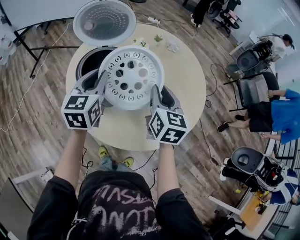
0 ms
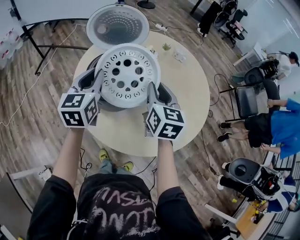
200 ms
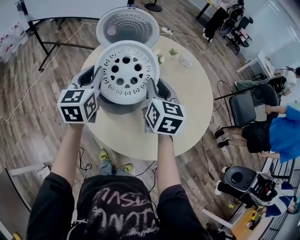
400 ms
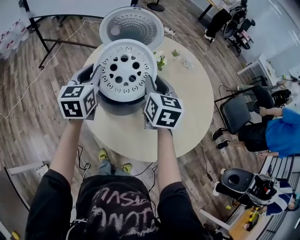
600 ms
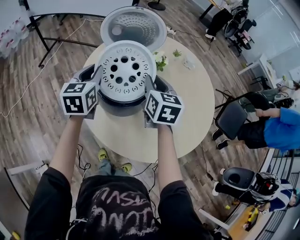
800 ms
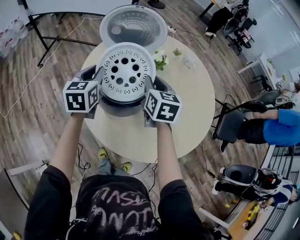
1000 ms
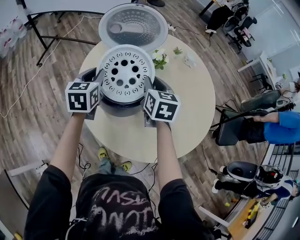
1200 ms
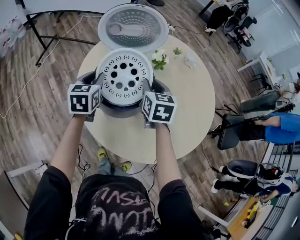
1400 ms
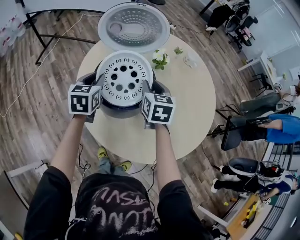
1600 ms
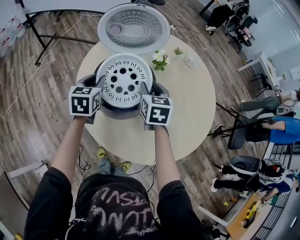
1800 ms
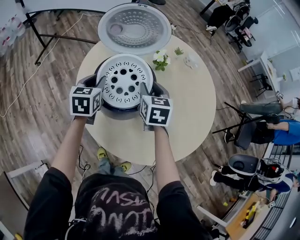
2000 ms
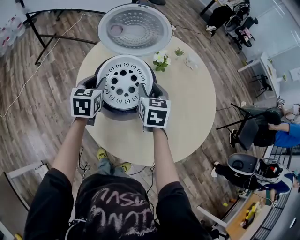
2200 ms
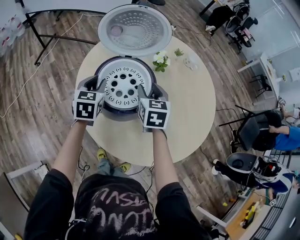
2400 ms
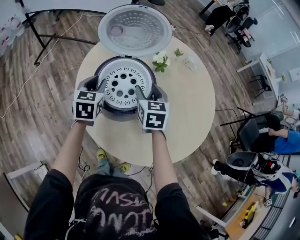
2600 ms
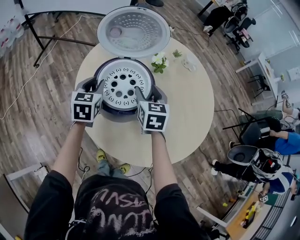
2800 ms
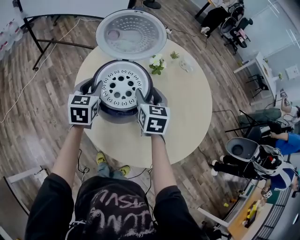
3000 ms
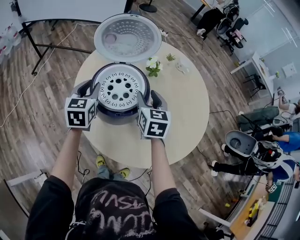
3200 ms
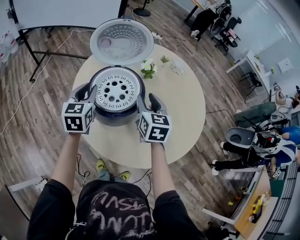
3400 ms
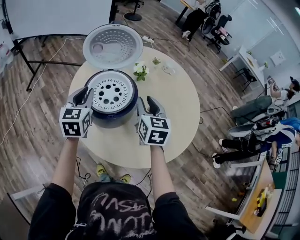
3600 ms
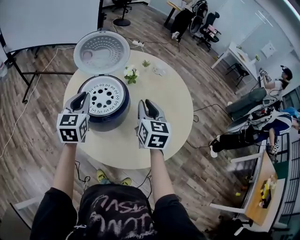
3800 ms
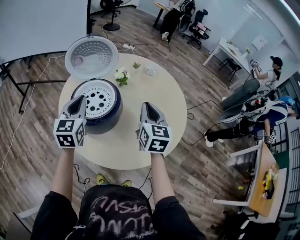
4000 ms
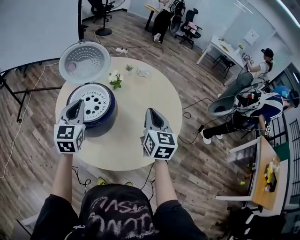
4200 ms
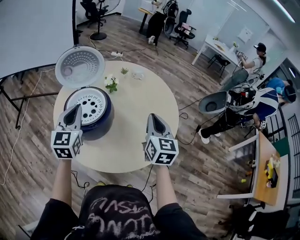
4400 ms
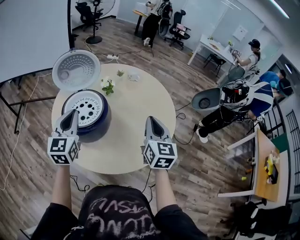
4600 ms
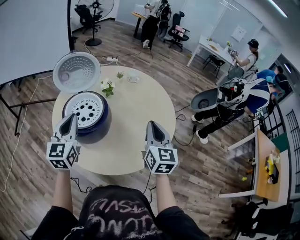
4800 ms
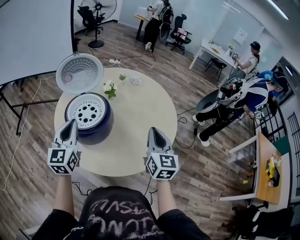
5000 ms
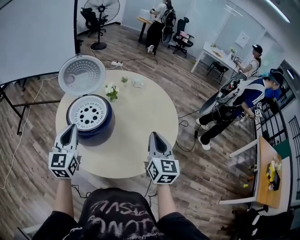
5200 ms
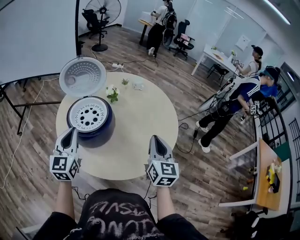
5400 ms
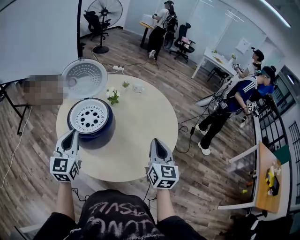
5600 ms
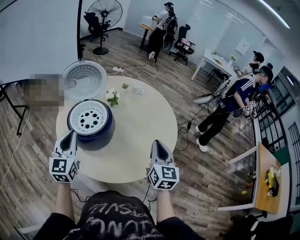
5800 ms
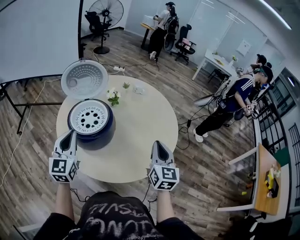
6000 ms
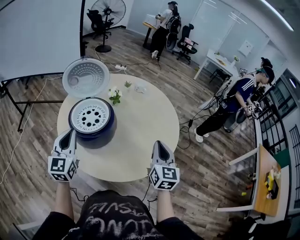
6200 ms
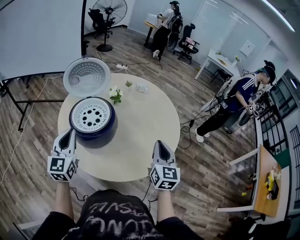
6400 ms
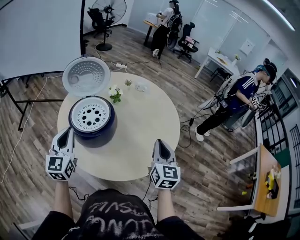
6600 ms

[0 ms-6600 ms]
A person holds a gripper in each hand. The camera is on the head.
0 ms to 1600 ms: The left gripper goes about 20 cm to the left, downward and forward. Meanwhile the right gripper heads to the left, forward and downward, covering roughly 20 cm.
1600 ms to 3200 ms: The grippers make only small movements.
3200 ms to 5000 ms: The right gripper shifts approximately 30 cm to the right, backward and upward, changes its angle by about 30 degrees, and closes up, while the left gripper travels upward, backward and to the right by approximately 20 cm, changes its angle by roughly 30 degrees, and closes.
5000 ms to 6600 ms: The grippers move only a little.

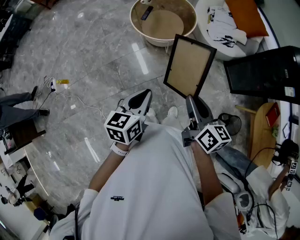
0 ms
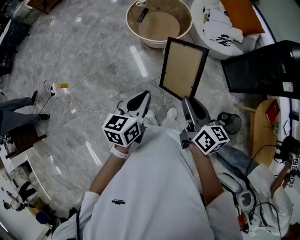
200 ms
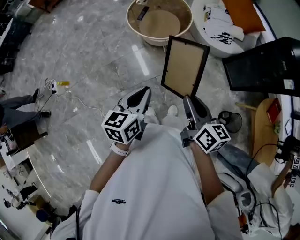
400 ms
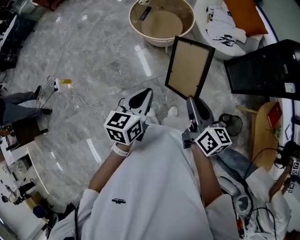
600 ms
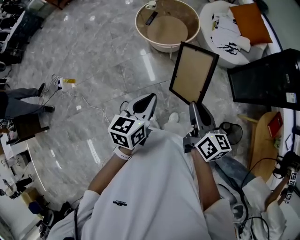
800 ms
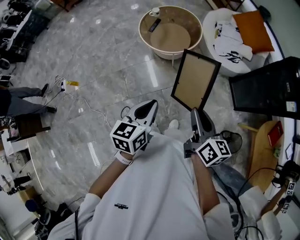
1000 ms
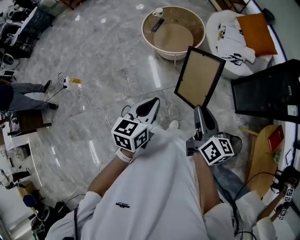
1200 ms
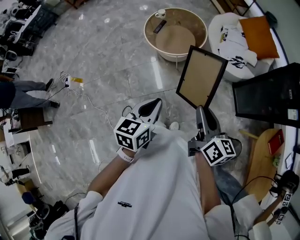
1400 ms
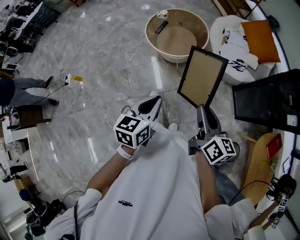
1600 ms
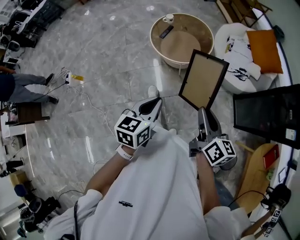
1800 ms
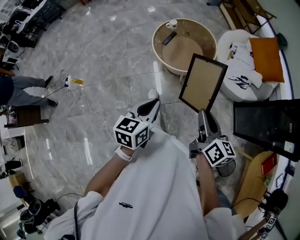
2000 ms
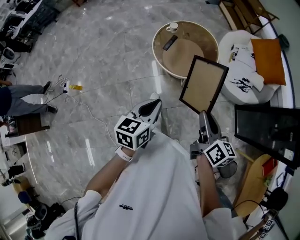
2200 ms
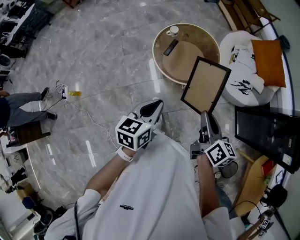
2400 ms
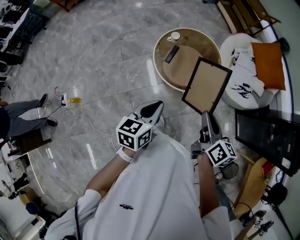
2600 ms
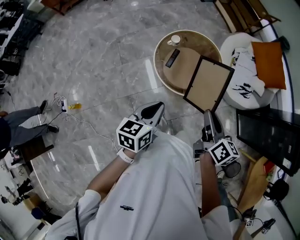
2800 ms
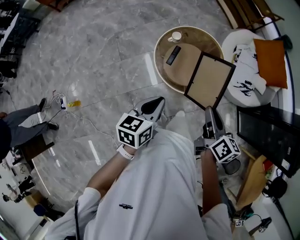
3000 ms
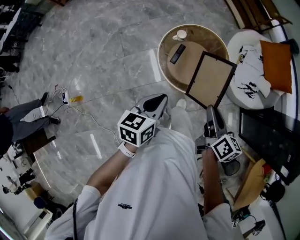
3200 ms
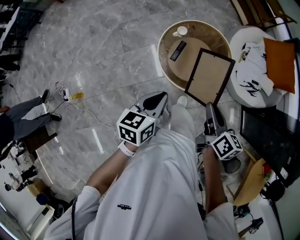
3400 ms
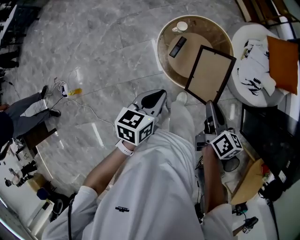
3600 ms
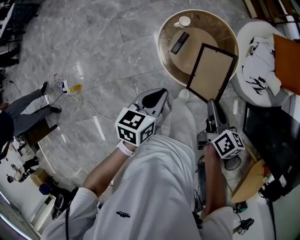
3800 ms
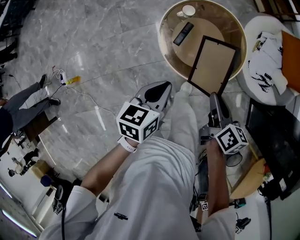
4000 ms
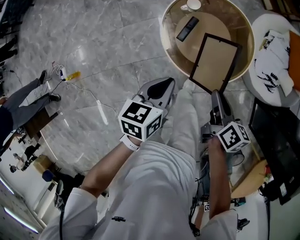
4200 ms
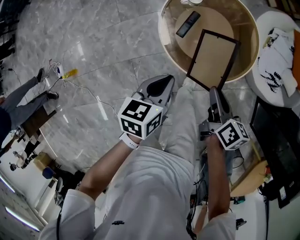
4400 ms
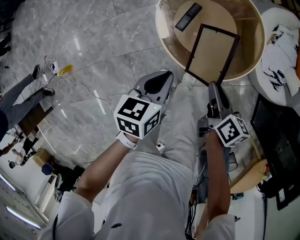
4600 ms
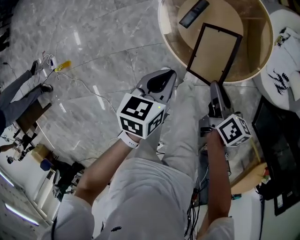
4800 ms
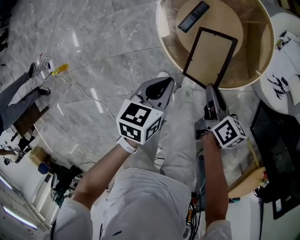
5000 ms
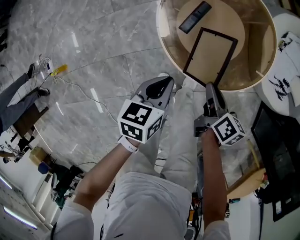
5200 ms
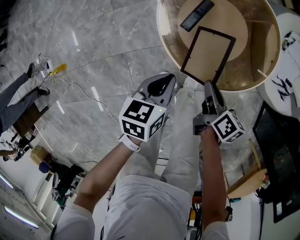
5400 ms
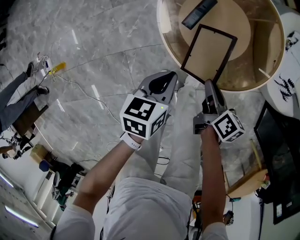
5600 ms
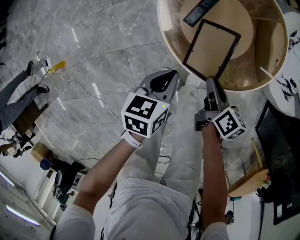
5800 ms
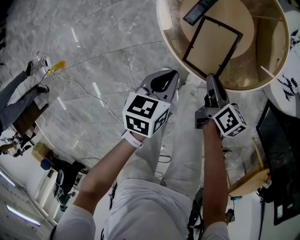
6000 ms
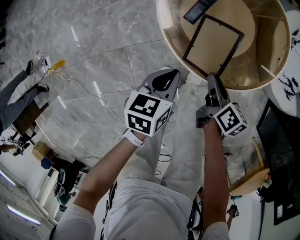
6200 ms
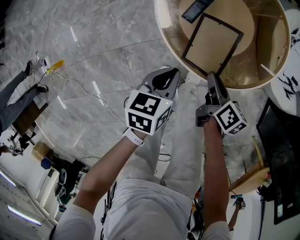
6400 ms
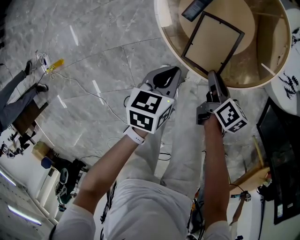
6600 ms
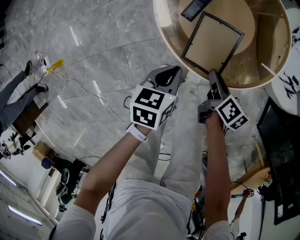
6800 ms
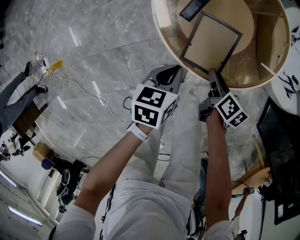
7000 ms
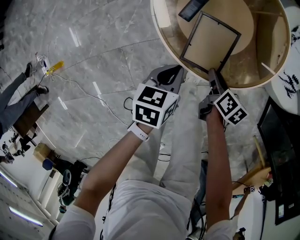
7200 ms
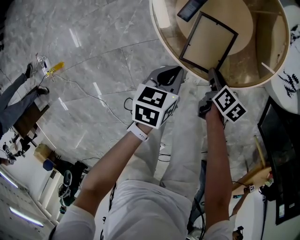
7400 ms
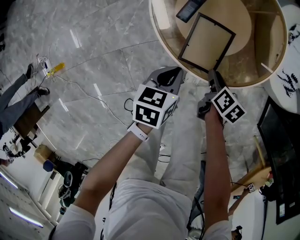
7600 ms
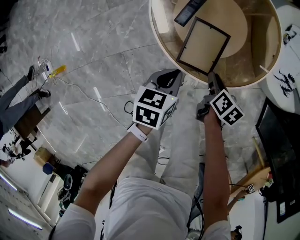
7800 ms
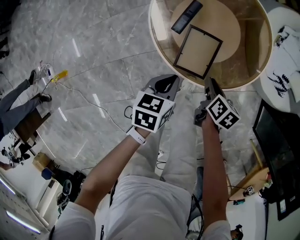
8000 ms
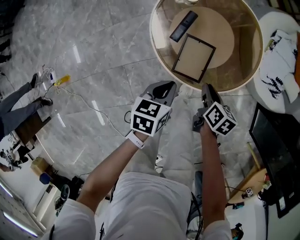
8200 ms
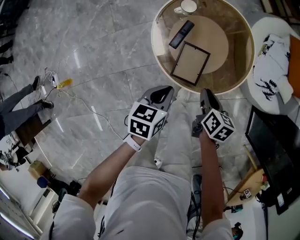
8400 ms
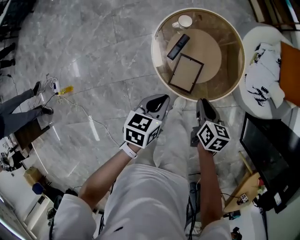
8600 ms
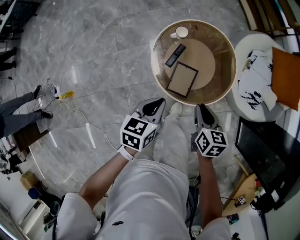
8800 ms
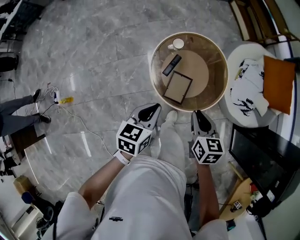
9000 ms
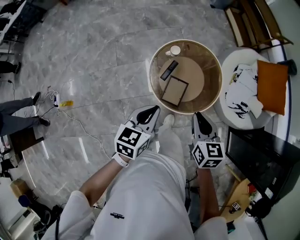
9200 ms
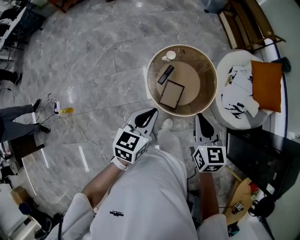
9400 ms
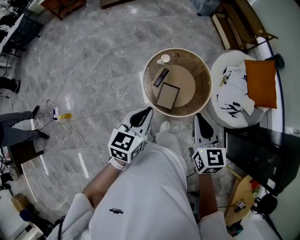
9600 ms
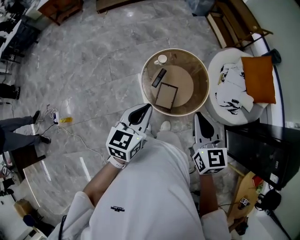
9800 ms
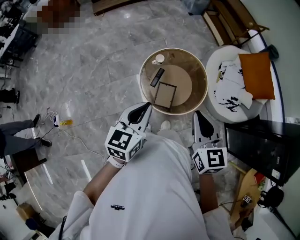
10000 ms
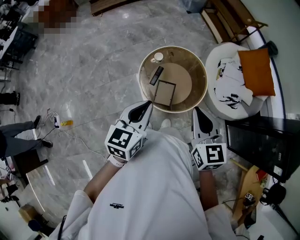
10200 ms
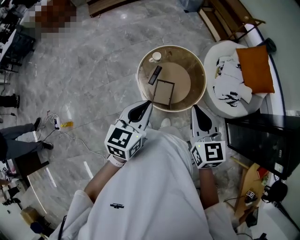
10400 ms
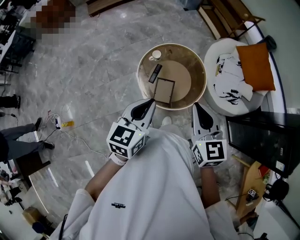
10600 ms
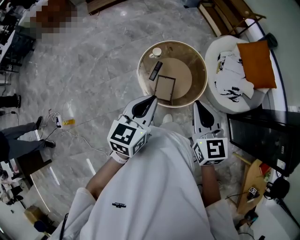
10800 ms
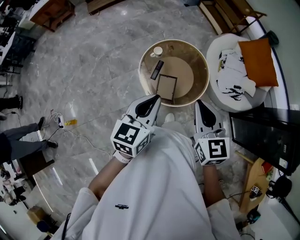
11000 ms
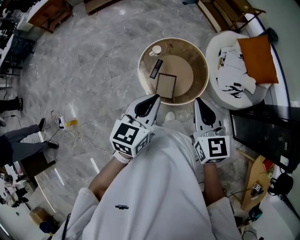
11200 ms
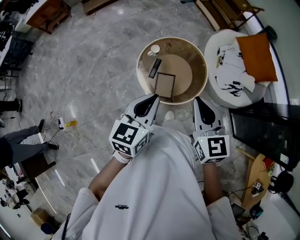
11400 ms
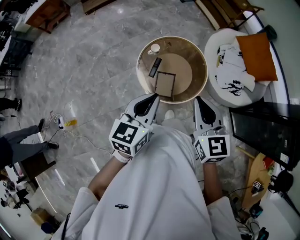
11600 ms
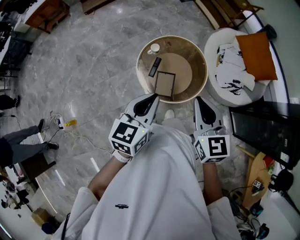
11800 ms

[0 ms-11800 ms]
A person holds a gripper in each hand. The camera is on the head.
0 ms to 1400 ms: Both grippers move to the right, about 10 cm.
1400 ms to 3000 ms: The two grippers travel together, forward and to the left, roughly 50 cm.
3000 ms to 4400 ms: Both grippers travel together downward and forward, approximately 25 cm.
4400 ms to 6000 ms: Both grippers move downward, roughly 25 cm.
6000 ms to 7400 ms: The right gripper moves downward, some 5 cm.
7400 ms to 8800 ms: Both grippers travel together upward, some 35 cm. The right gripper swivels roughly 30 degrees.
8800 ms to 10400 ms: Both grippers move upward, roughly 25 cm. The left gripper swivels approximately 20 degrees. The right gripper rotates about 30 degrees.
10400 ms to 11800 ms: The grippers make only small movements.

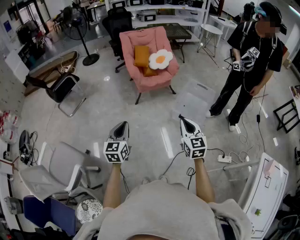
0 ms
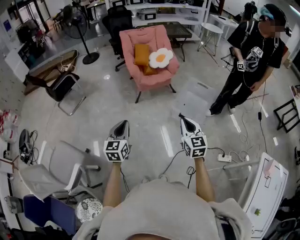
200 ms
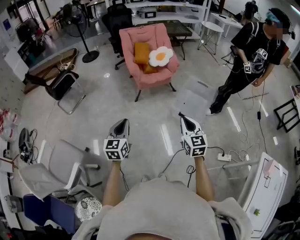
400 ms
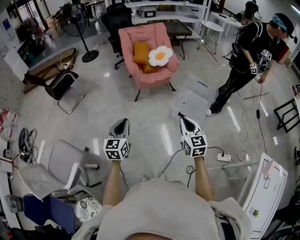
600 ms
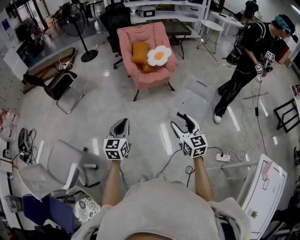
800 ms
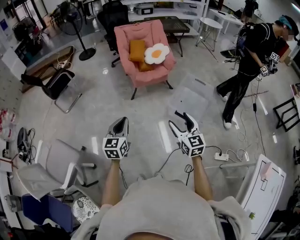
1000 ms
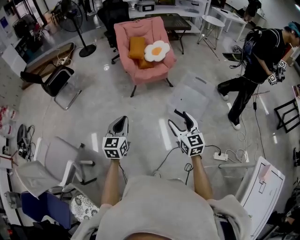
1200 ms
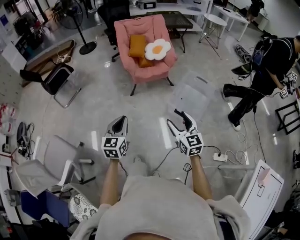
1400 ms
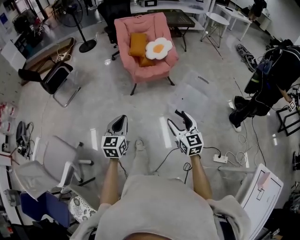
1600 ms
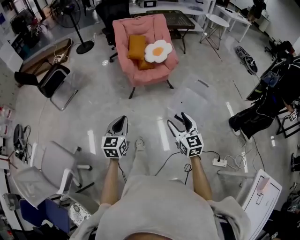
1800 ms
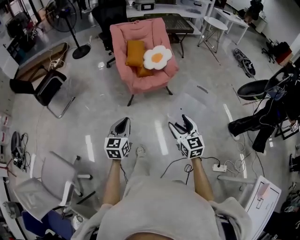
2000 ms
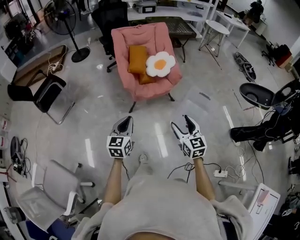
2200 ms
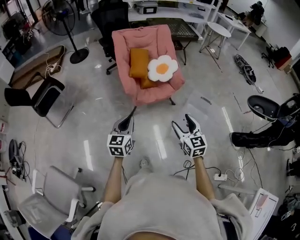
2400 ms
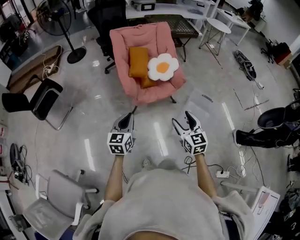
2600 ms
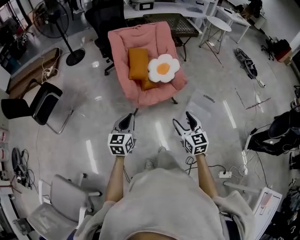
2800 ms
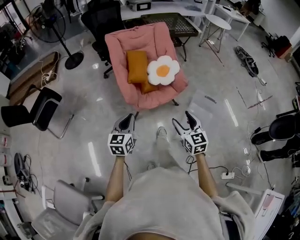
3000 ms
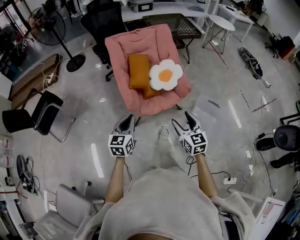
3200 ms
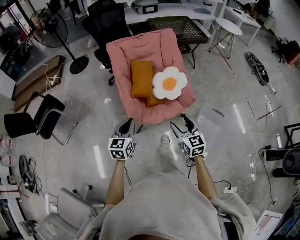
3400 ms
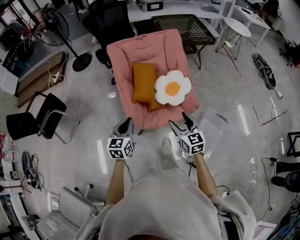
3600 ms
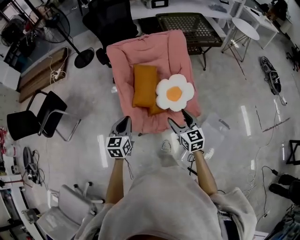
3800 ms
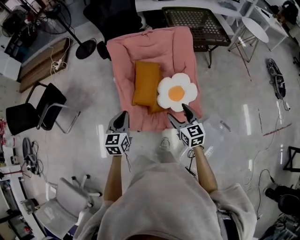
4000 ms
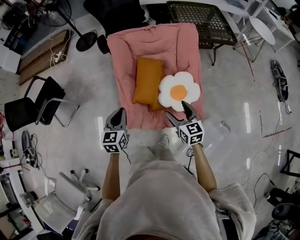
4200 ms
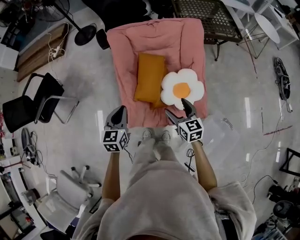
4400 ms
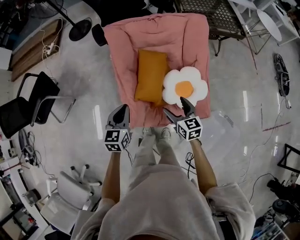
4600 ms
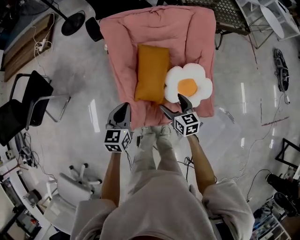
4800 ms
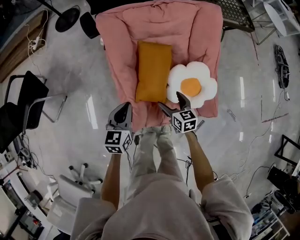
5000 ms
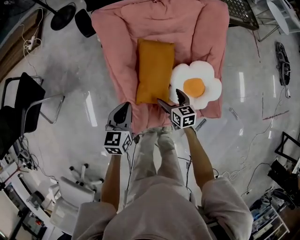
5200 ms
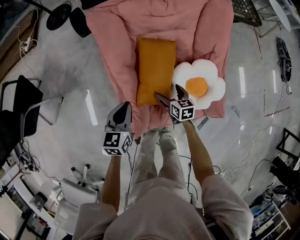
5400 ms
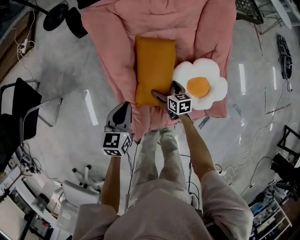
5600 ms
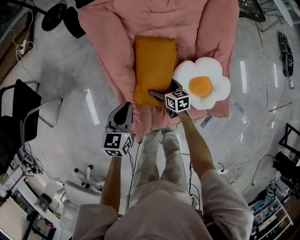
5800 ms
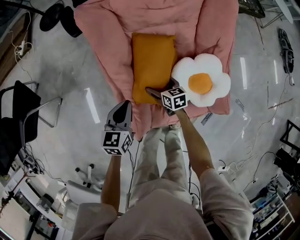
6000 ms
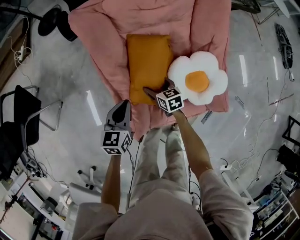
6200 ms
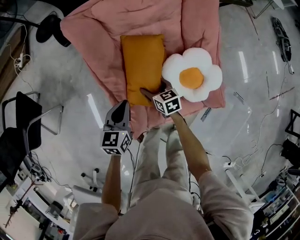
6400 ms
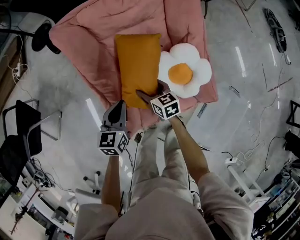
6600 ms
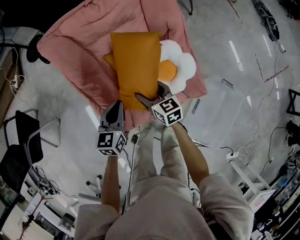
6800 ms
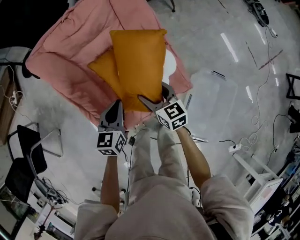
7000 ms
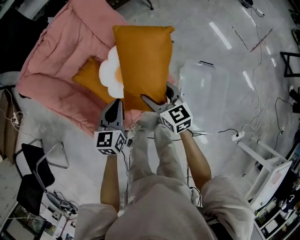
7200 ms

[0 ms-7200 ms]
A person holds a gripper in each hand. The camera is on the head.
0 ms to 1400 ms: The left gripper heads to the right and forward, covering roughly 10 cm, while the right gripper is displaced forward by some 5 cm, and opens its fingers.
1400 ms to 2800 ms: Both grippers are carried forward, roughly 40 cm.
2800 ms to 4400 ms: The two grippers travel together, forward, about 50 cm. The right gripper turns by roughly 20 degrees.
4400 ms to 5800 ms: The grippers both shift downward and forward by approximately 30 cm. The right gripper changes its angle by about 30 degrees.
5800 ms to 7200 ms: The left gripper shifts by some 35 cm, and rotates approximately 30 degrees; the right gripper moves roughly 40 cm, rotates some 30 degrees, and closes.
